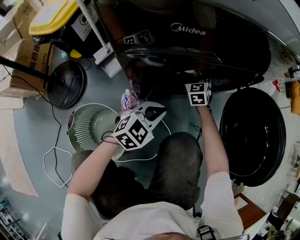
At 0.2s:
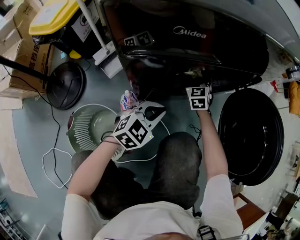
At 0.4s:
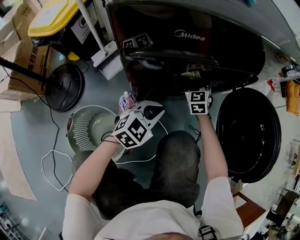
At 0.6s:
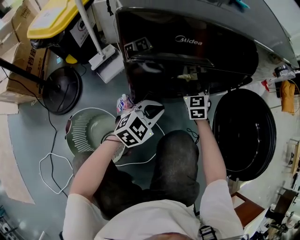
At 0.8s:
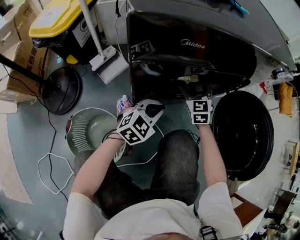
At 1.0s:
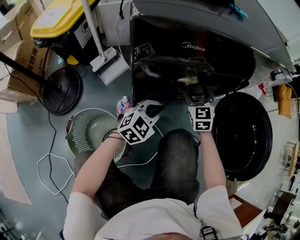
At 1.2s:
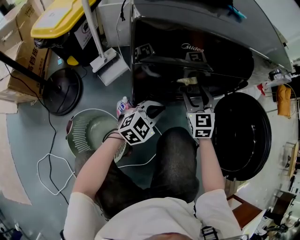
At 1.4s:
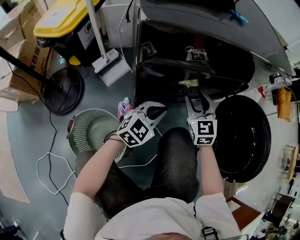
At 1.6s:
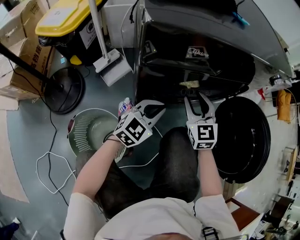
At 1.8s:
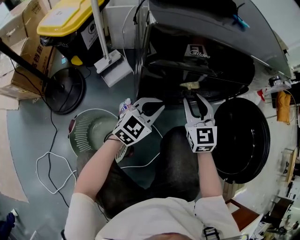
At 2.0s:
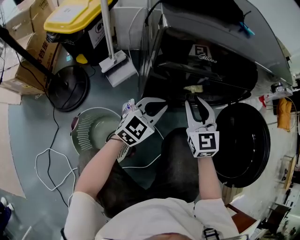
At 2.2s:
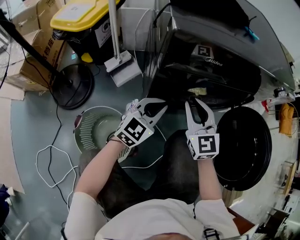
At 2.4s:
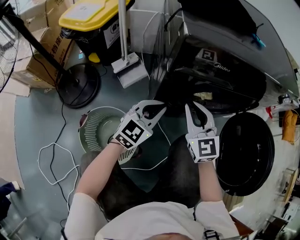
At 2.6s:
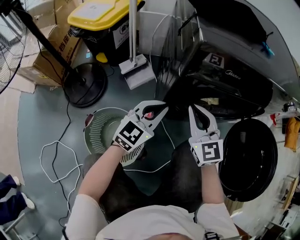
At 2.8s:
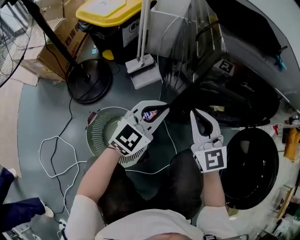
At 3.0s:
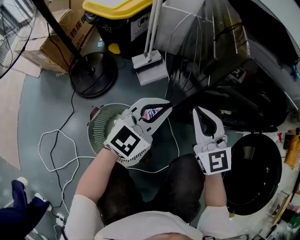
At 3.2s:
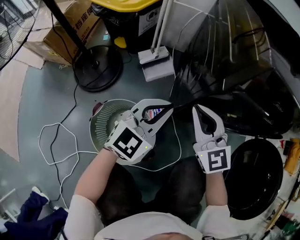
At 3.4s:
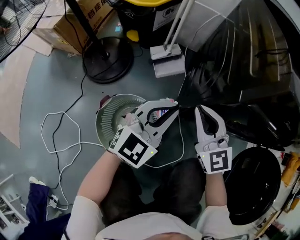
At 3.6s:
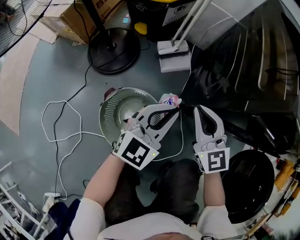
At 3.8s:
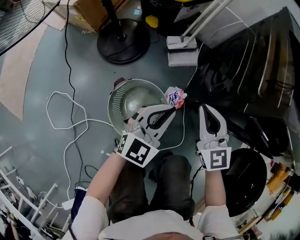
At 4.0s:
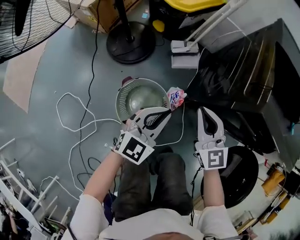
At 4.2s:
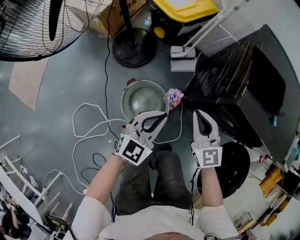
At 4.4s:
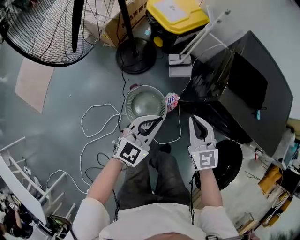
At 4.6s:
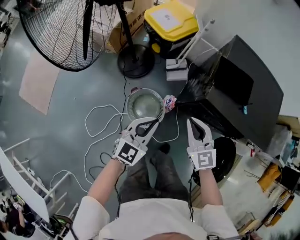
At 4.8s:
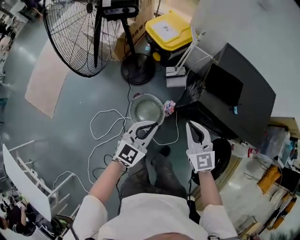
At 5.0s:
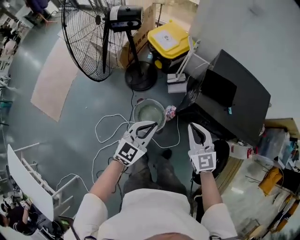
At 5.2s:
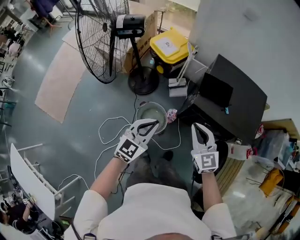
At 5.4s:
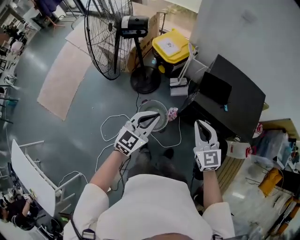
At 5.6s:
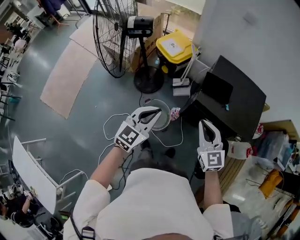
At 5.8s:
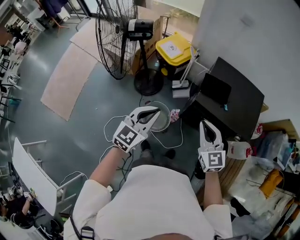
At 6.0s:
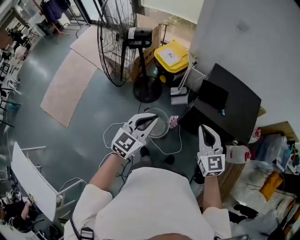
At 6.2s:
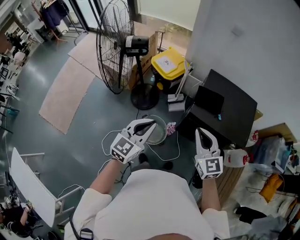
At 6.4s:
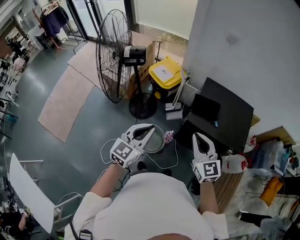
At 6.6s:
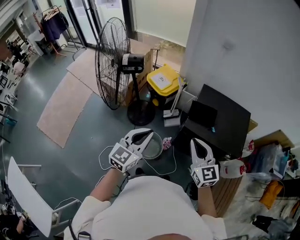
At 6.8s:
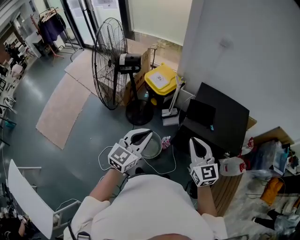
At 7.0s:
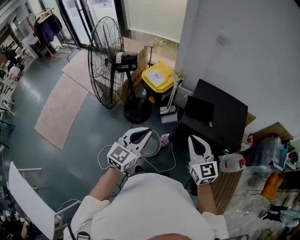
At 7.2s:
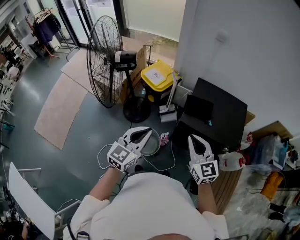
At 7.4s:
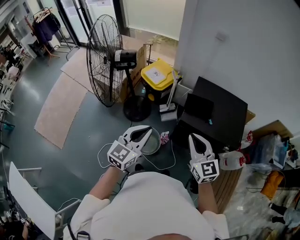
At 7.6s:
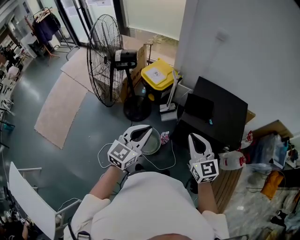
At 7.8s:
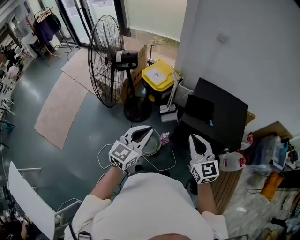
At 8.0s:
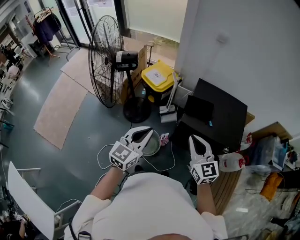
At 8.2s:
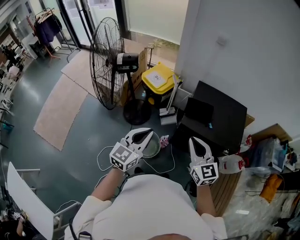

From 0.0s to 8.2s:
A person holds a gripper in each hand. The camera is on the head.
From 0.0s to 1.6s: The left gripper travels upward by roughly 5 cm. The right gripper travels upward and backward by approximately 25 cm.
From 1.6s to 3.2s: The left gripper moves about 20 cm, and turns by approximately 20 degrees; the right gripper shifts by approximately 20 cm, and rotates roughly 30 degrees.
From 3.2s to 5.0s: Both grippers move upward, about 50 cm. The left gripper turns by approximately 30 degrees.
From 5.0s to 6.6s: Both grippers move upward, some 20 cm.
From 6.6s to 8.2s: There are only small adjustments of the grippers.

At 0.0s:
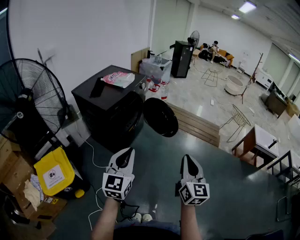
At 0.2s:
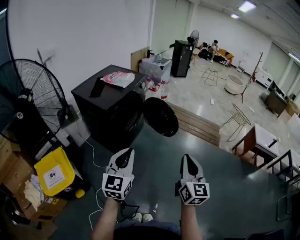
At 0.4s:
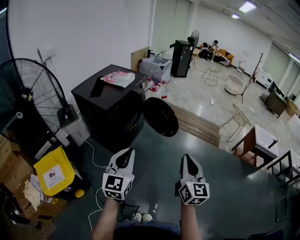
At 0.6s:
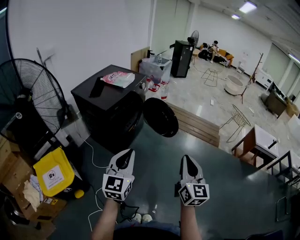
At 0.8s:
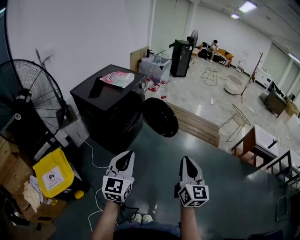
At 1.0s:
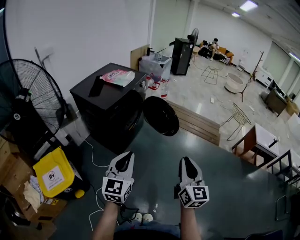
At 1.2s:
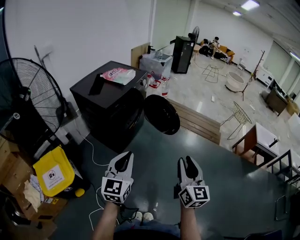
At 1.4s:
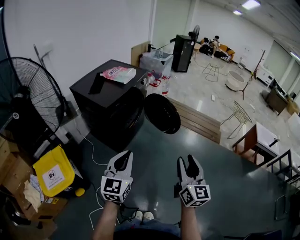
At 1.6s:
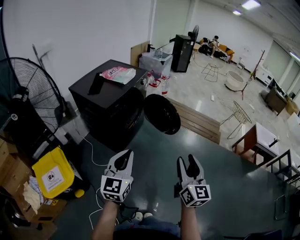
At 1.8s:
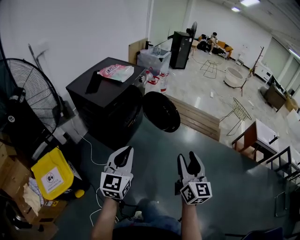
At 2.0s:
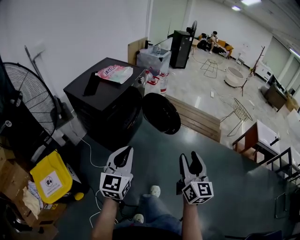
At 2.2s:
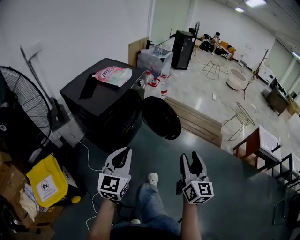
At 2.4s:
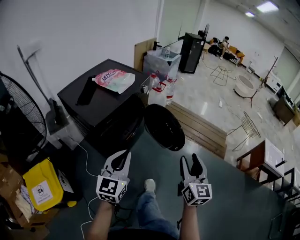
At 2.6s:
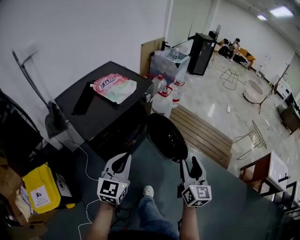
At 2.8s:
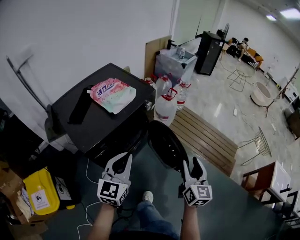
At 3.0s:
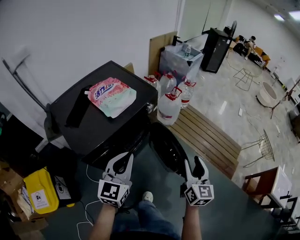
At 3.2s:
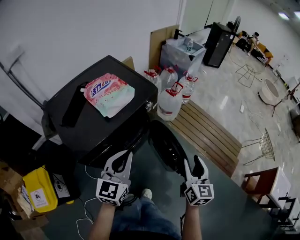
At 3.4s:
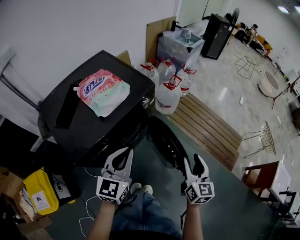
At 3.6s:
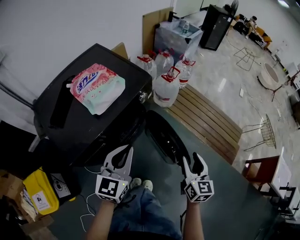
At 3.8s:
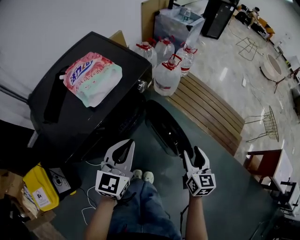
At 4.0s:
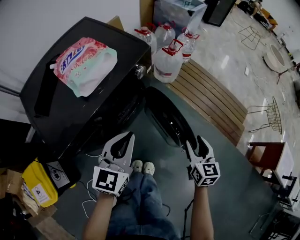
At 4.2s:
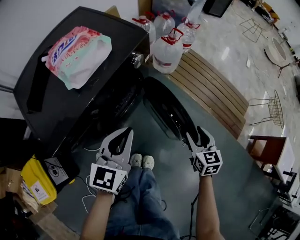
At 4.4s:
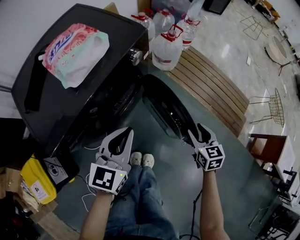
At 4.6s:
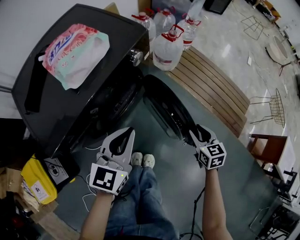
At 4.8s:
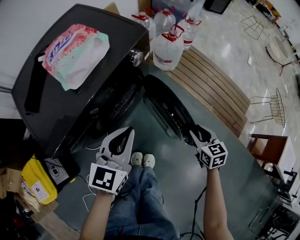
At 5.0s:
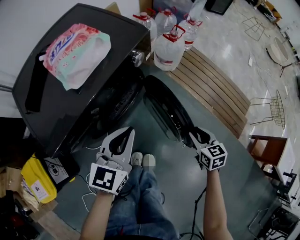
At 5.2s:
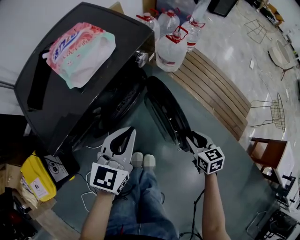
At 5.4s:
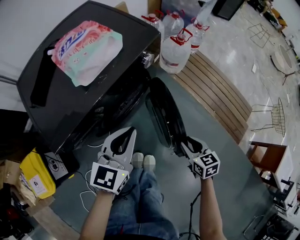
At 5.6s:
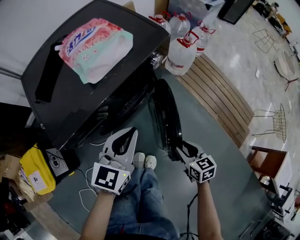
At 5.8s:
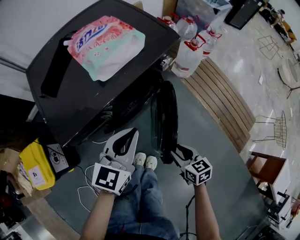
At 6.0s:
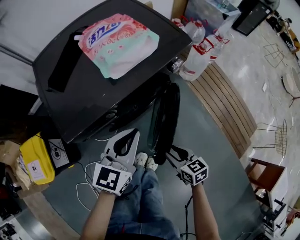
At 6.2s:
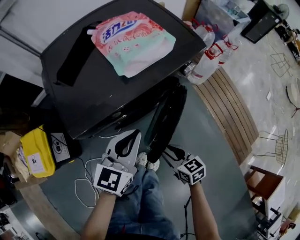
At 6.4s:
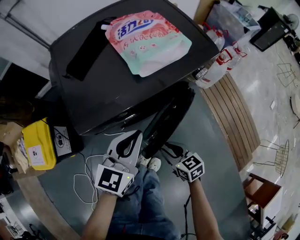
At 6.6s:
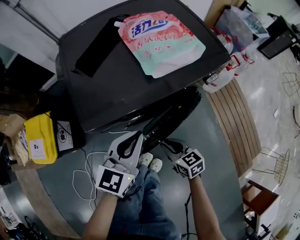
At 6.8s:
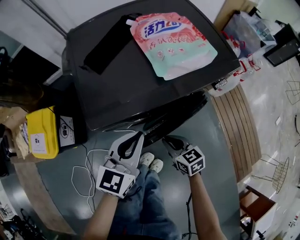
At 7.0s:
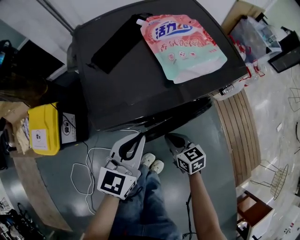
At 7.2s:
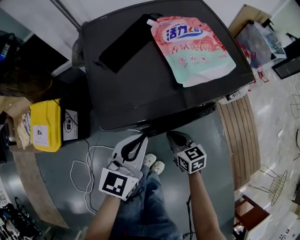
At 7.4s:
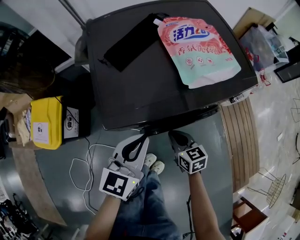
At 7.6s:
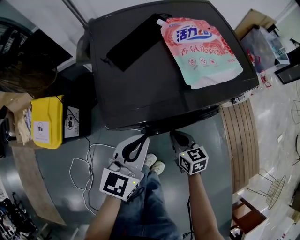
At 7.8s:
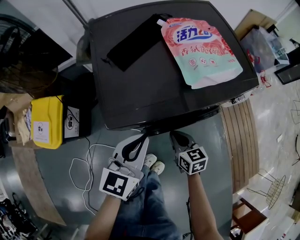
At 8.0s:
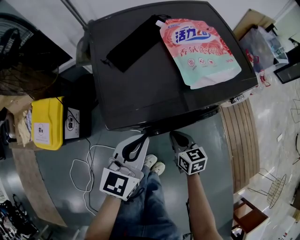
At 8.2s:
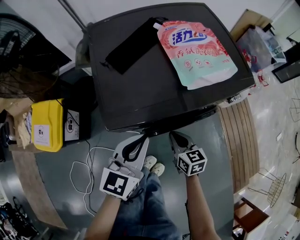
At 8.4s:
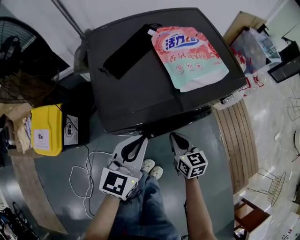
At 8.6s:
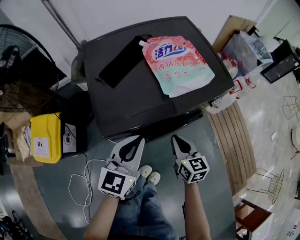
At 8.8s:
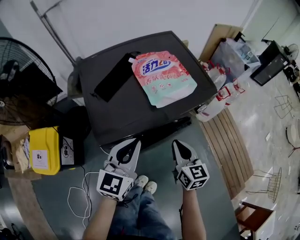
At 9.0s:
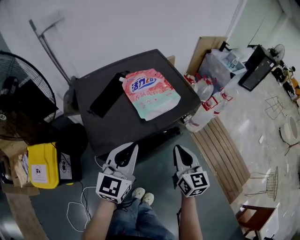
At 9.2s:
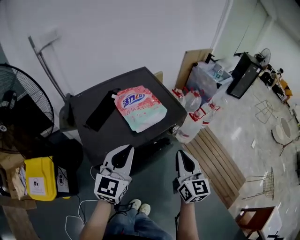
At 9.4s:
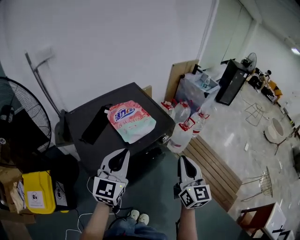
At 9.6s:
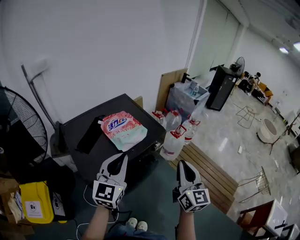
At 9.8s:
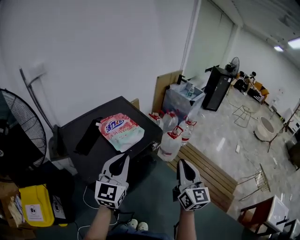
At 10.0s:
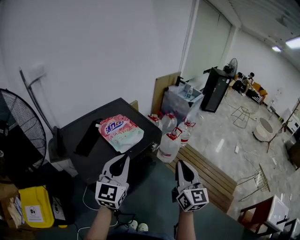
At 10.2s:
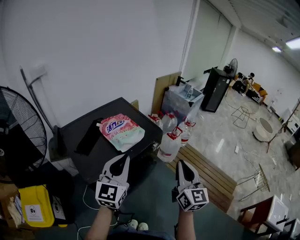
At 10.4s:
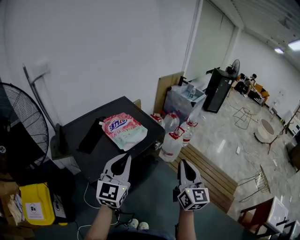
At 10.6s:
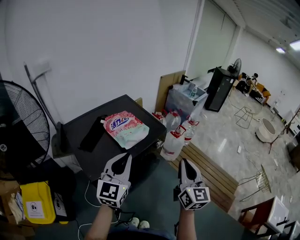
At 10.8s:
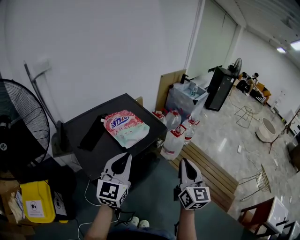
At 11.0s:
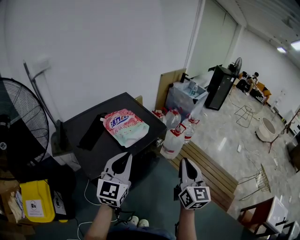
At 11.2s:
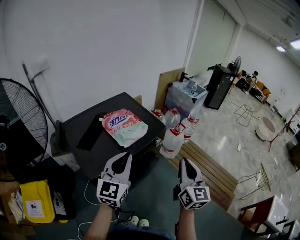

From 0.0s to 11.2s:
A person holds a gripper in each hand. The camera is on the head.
From 0.0s to 1.6s: The right gripper opens.
From 1.6s to 3.2s: The two grippers travel together, forward, some 50 cm.
From 3.2s to 4.8s: The right gripper heads downward, covering about 25 cm, and changes its angle by about 30 degrees. Meanwhile the left gripper goes some 15 cm downward and forward.
From 4.8s to 6.4s: The right gripper changes place by approximately 30 cm, and swivels about 40 degrees. Meanwhile the left gripper ends up about 15 cm from where it was.
From 6.4s to 8.0s: The left gripper is displaced to the left by roughly 10 cm; the right gripper travels forward and to the left by some 10 cm, and closes its fingers.
From 8.0s to 9.6s: The left gripper travels upward by approximately 25 cm, and rotates about 30 degrees; the right gripper shifts approximately 40 cm upward, and points its fingers about 40 degrees further upward.
From 9.6s to 11.2s: There are only small adjustments of the grippers.

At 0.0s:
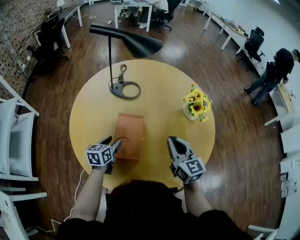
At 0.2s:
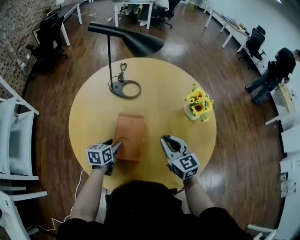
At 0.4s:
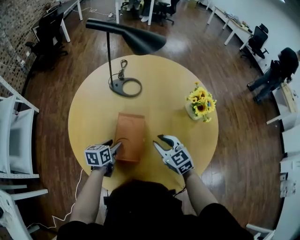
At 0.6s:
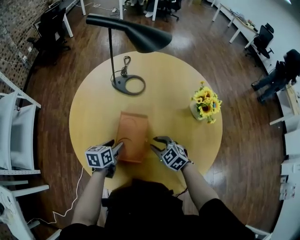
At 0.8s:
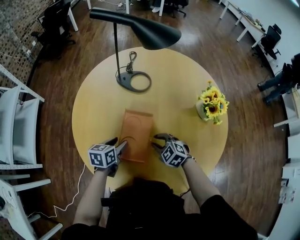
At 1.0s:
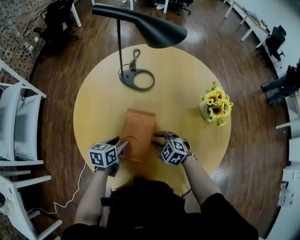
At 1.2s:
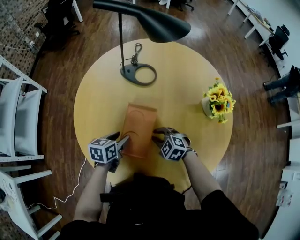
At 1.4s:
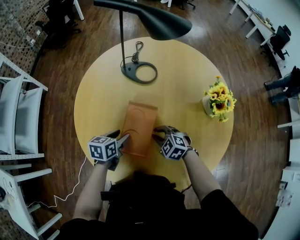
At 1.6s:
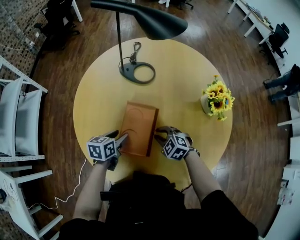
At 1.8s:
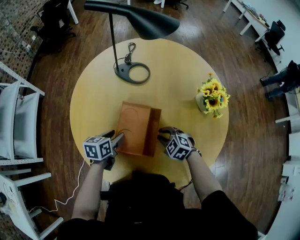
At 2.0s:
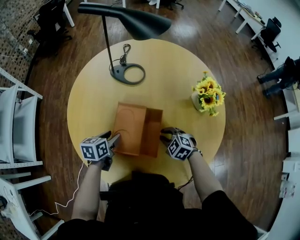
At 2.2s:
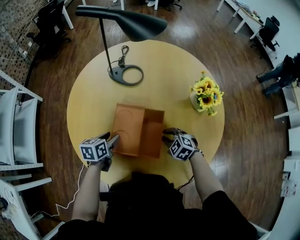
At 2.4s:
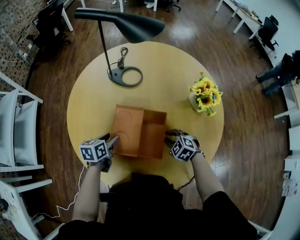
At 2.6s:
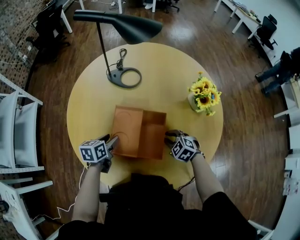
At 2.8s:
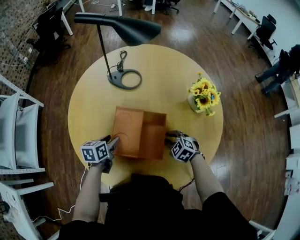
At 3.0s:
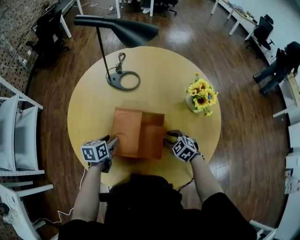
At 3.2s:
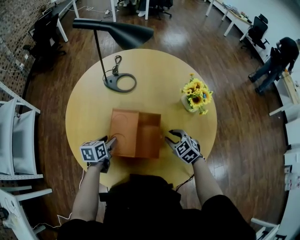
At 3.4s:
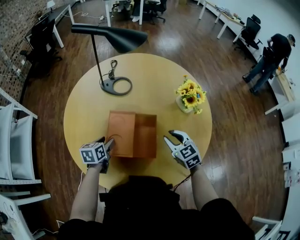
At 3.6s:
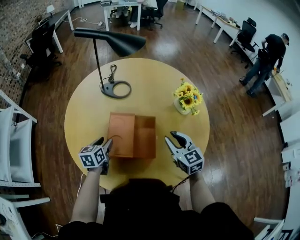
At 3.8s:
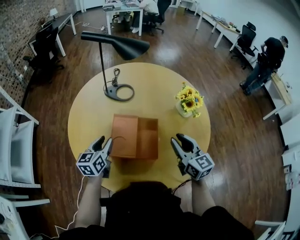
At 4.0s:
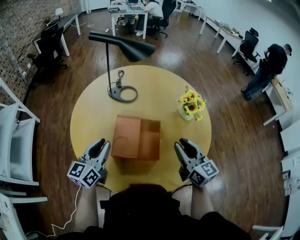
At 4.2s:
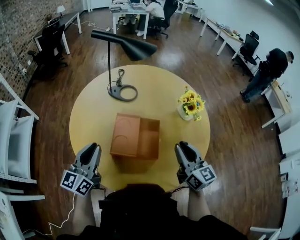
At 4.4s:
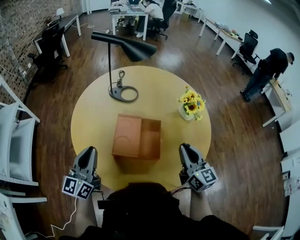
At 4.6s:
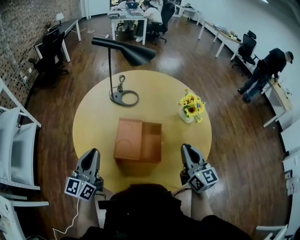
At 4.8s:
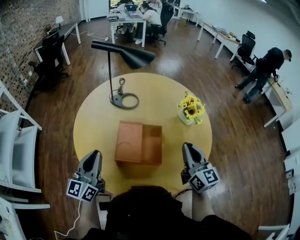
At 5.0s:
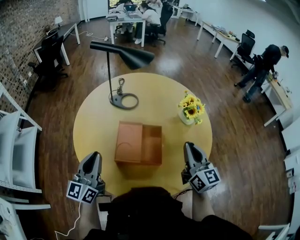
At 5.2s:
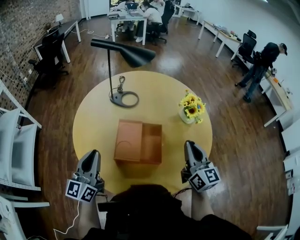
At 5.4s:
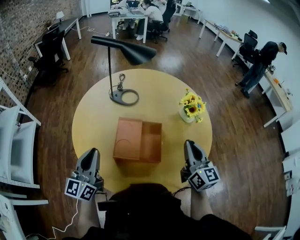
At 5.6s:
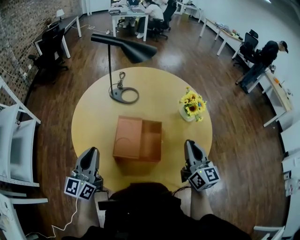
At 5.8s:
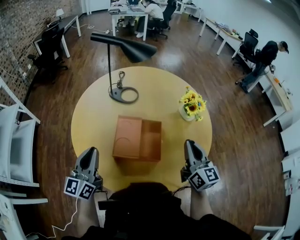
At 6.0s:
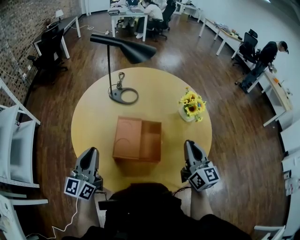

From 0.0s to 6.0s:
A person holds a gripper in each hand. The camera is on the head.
From 0.0s to 1.6s: The right gripper heads downward and to the left, covering some 20 cm, and tilts its fingers about 40 degrees downward.
From 1.6s to 3.0s: The right gripper shifts approximately 10 cm to the right.
From 3.0s to 4.4s: The left gripper heads upward and backward, covering roughly 25 cm, points its fingers some 40 degrees further upward, and closes its fingers. Meanwhile the right gripper goes about 25 cm upward, angles its fingers upward, by roughly 50 degrees, and closes its fingers.
From 4.4s to 6.0s: The grippers make only small movements.
